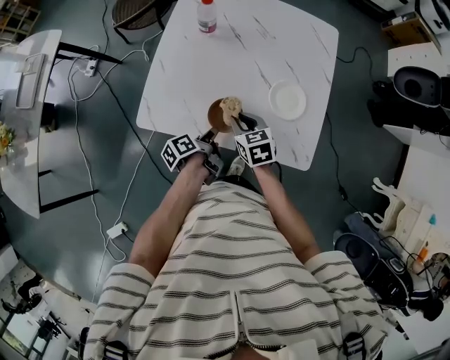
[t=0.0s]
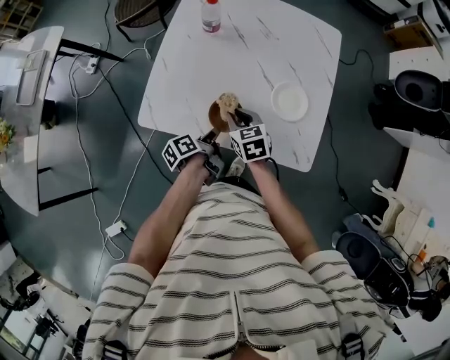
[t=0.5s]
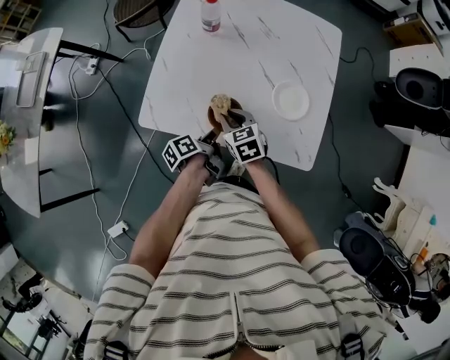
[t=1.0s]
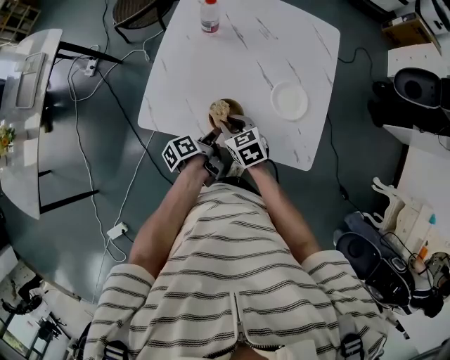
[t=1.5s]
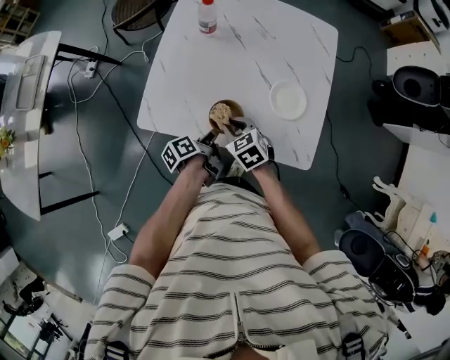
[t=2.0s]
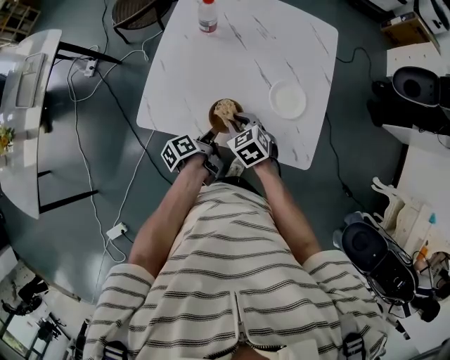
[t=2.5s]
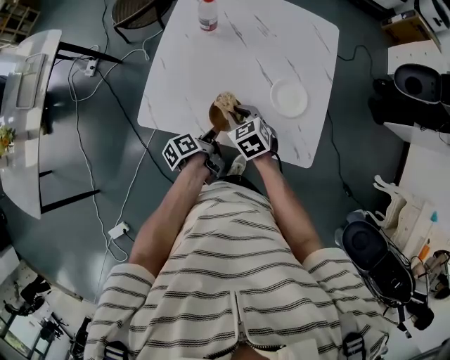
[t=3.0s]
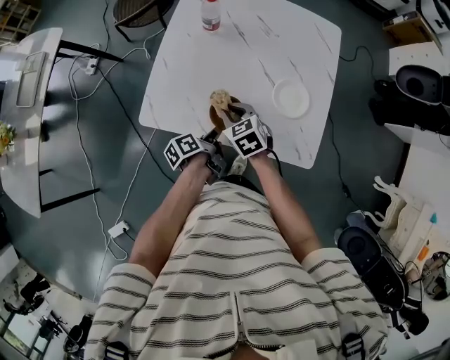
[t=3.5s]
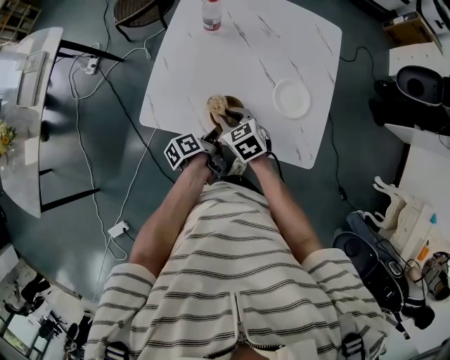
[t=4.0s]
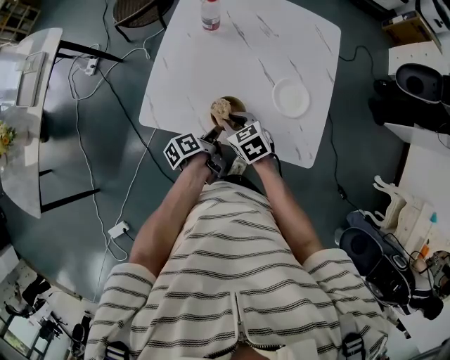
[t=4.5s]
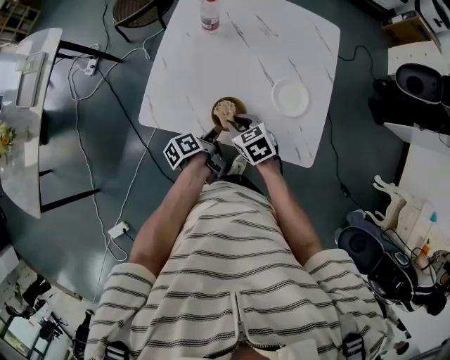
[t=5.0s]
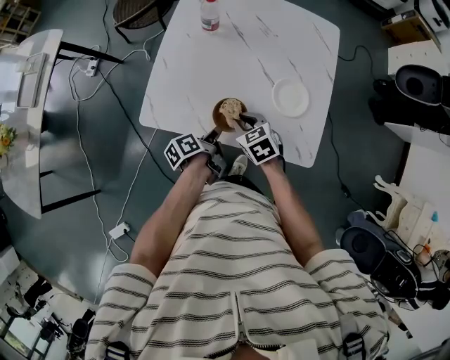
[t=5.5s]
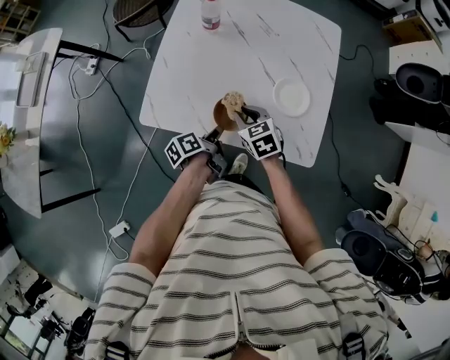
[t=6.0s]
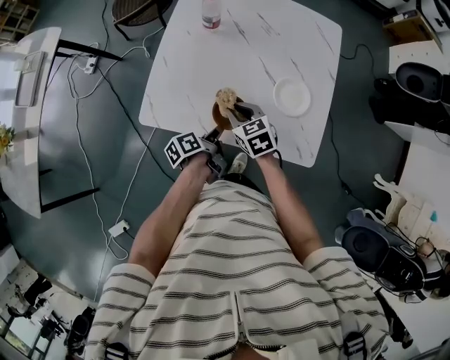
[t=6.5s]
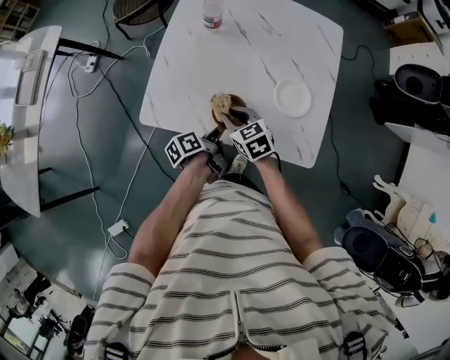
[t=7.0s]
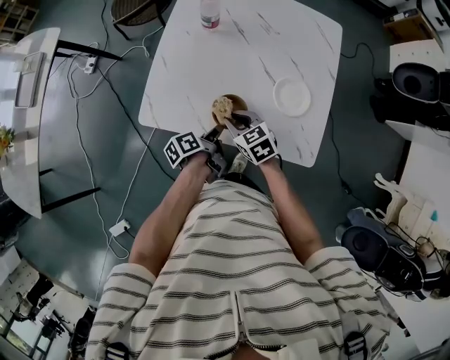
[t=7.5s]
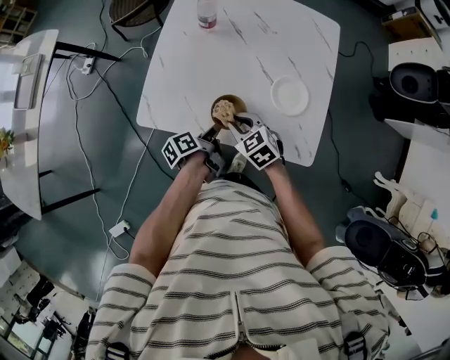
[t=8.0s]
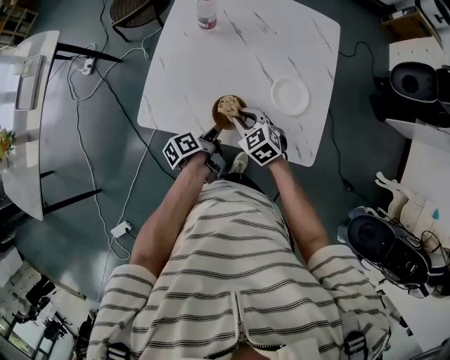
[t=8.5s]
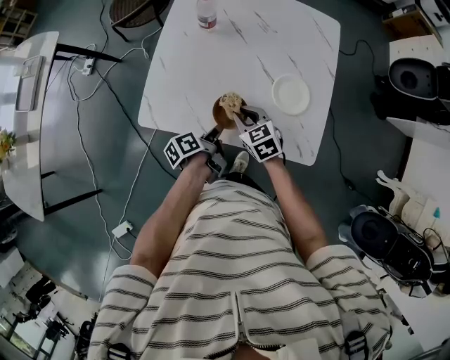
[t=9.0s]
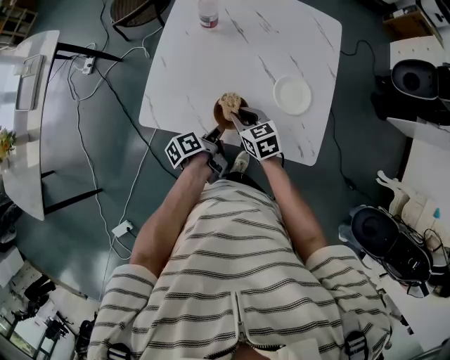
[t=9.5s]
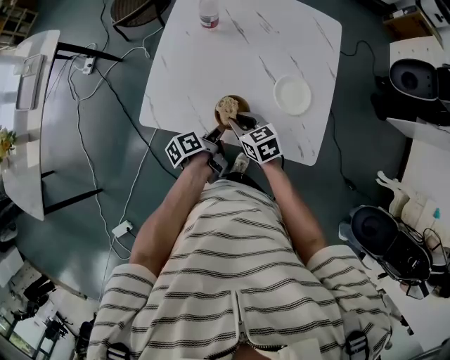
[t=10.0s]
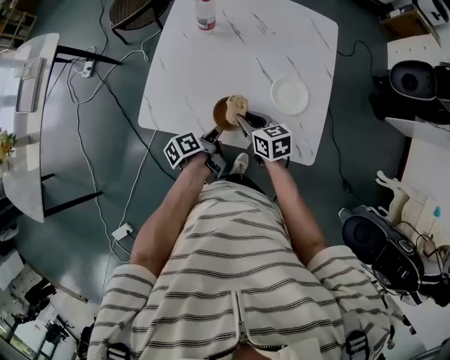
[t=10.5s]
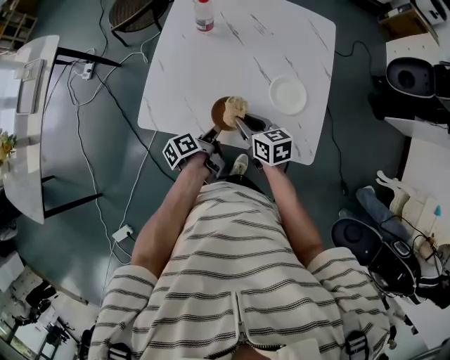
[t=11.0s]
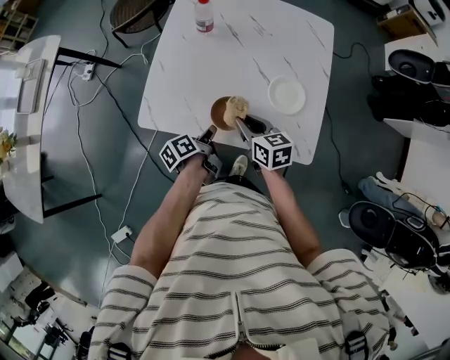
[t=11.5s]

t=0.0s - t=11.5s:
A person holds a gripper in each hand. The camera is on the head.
t=0.0s - t=2.0s: The grippers move only a little.
t=2.0s - t=4.0s: The grippers stay close to where they were, moving slightly.
t=4.0s - t=6.0s: The right gripper travels to the right by roughly 5 cm.
t=6.0s - t=9.5s: The grippers stay close to where they were, moving slightly.
t=9.5s - t=11.5s: The right gripper goes about 5 cm upward.

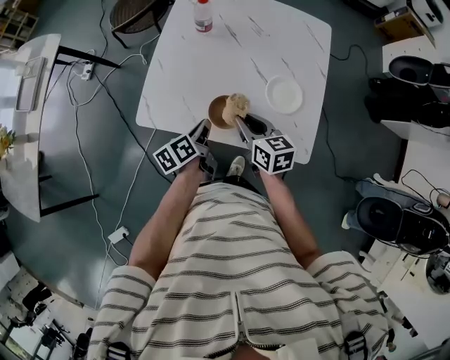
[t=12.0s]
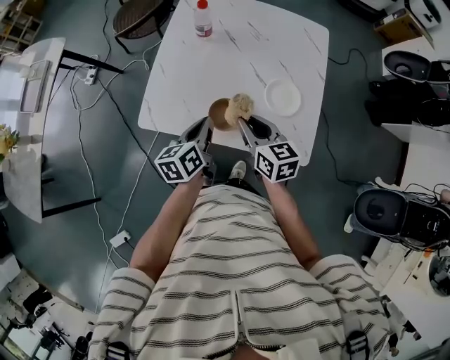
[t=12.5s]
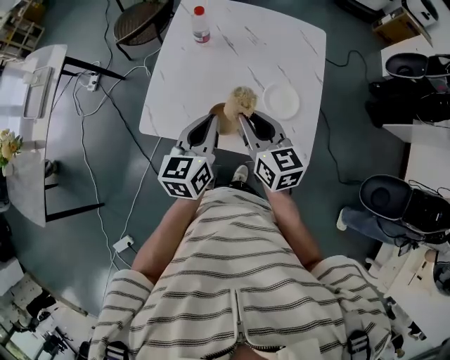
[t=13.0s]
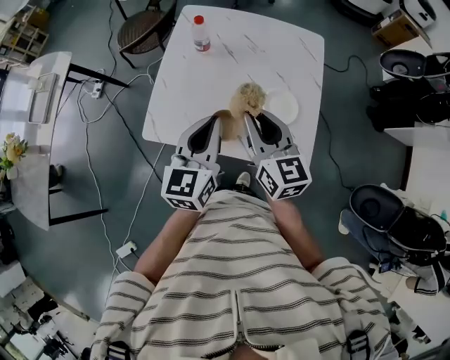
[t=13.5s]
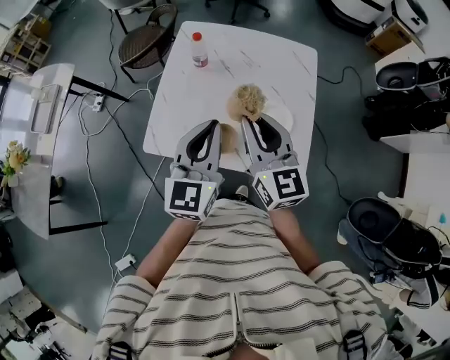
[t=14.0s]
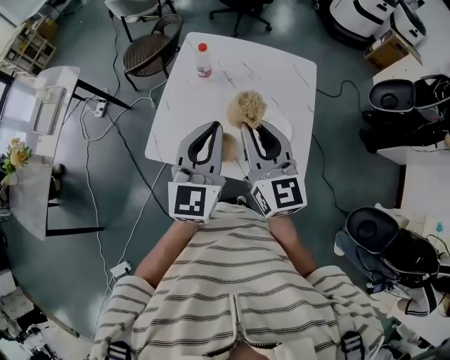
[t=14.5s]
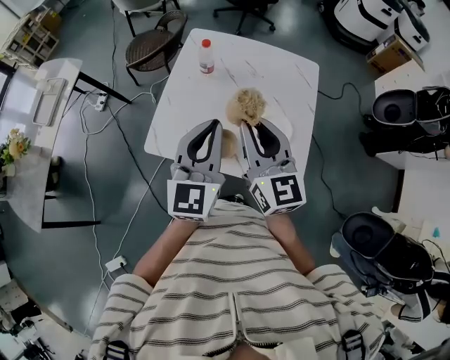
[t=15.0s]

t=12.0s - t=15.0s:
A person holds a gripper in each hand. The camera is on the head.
t=12.0s - t=13.5s: The two grippers go approximately 20 cm upward. The right gripper swivels approximately 30 degrees. The left gripper twists some 50 degrees clockwise, seen from behind.
t=13.5s - t=15.0s: The two grippers go about 10 cm upward.

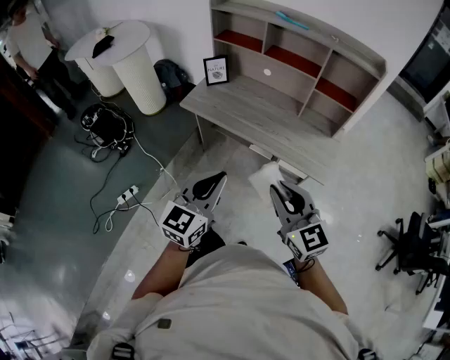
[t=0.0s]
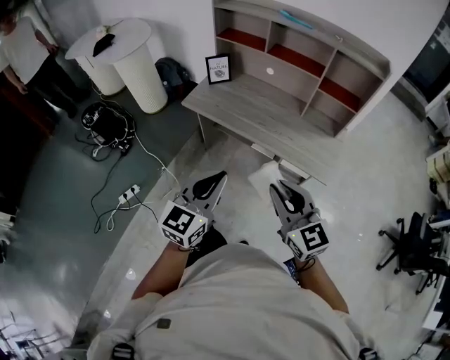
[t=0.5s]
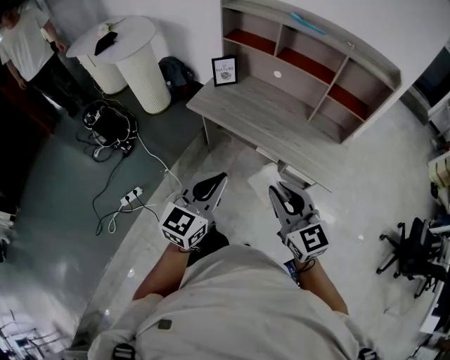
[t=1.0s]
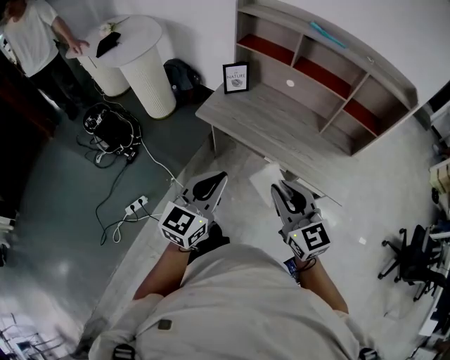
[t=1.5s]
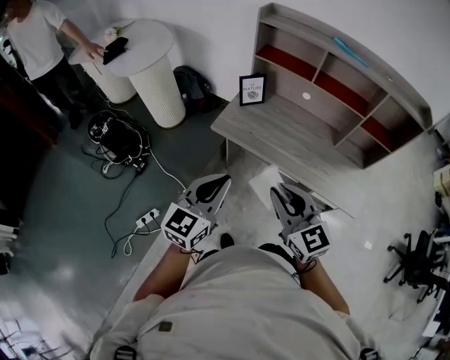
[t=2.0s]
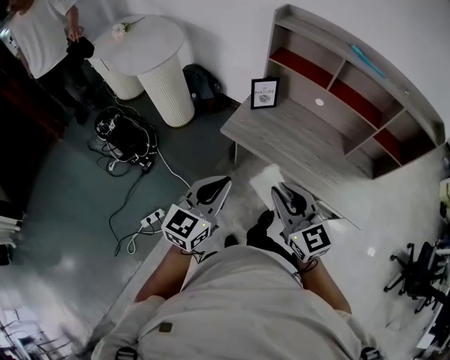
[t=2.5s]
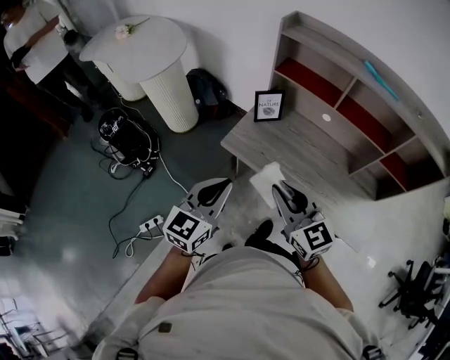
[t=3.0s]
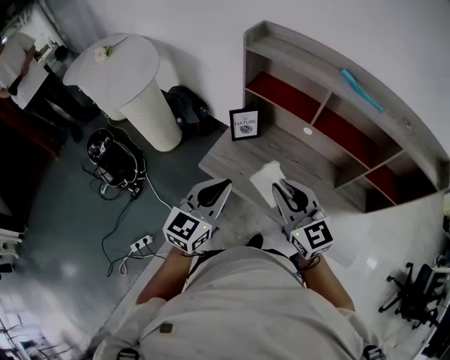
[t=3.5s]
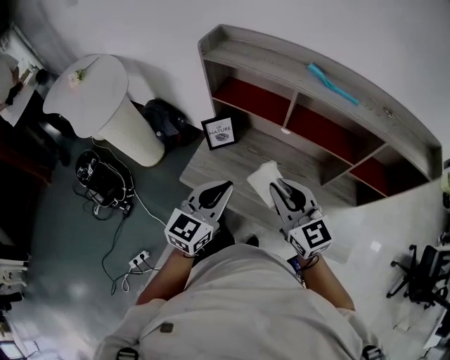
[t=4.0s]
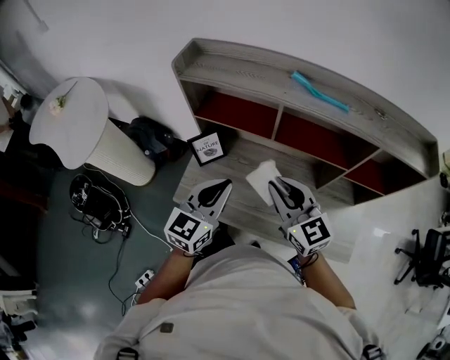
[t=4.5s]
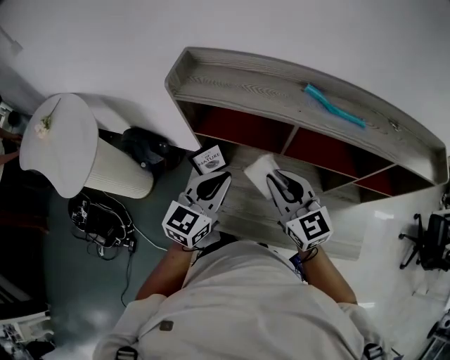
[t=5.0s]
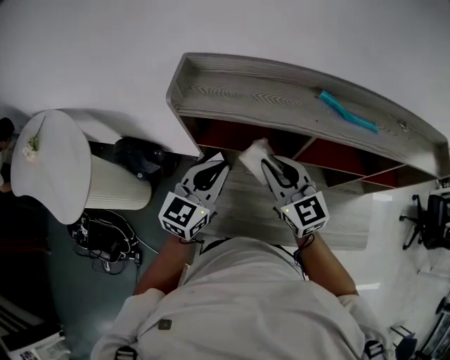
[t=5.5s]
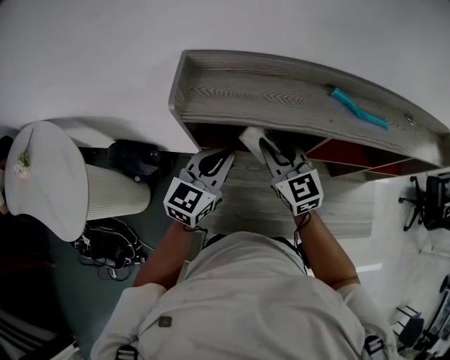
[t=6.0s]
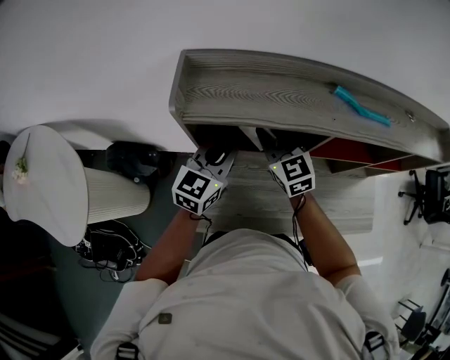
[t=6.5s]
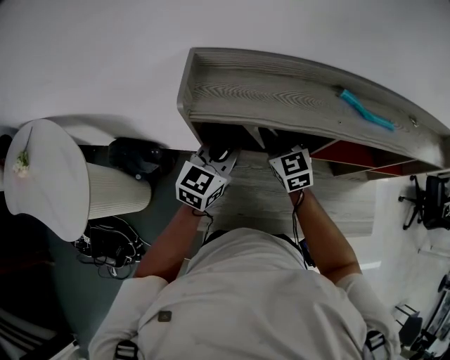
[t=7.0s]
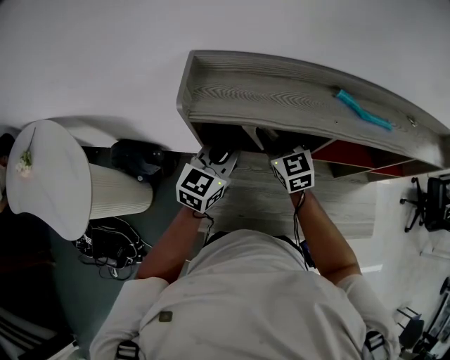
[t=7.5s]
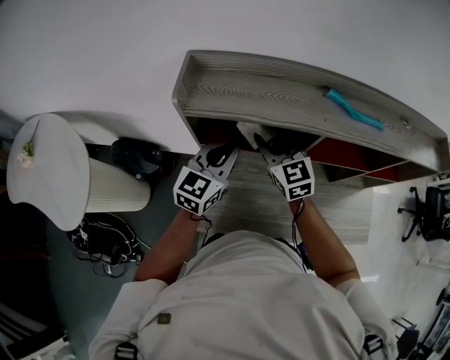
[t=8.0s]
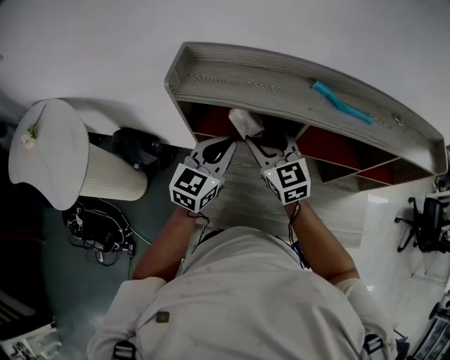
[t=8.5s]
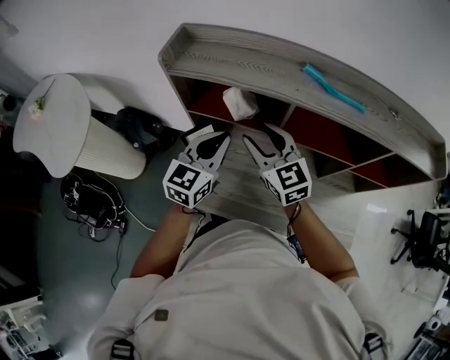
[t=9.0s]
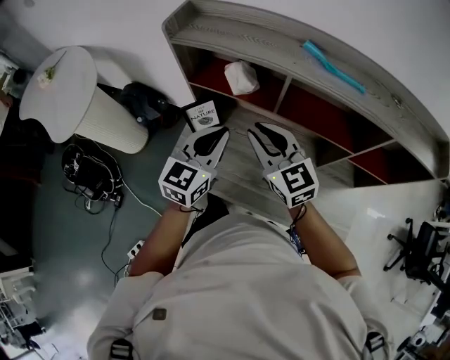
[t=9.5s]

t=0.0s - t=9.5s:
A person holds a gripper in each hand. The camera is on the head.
t=0.0s - t=2.0s: Both grippers move to the left and forward, approximately 30 cm.
t=2.0s - t=4.0s: The two grippers go some 35 cm forward and to the right.
t=4.0s - t=5.5s: The two grippers go roughly 25 cm forward.
t=5.5s - t=7.5s: The left gripper heads forward, covering some 10 cm. Meanwhile the right gripper heads forward and downward, covering approximately 15 cm, and opens up.
t=7.5s - t=9.5s: The left gripper travels backward and to the right by about 20 cm, and turns by approximately 20 degrees, while the right gripper is displaced backward by approximately 20 cm, turns by some 30 degrees, and closes its fingers.

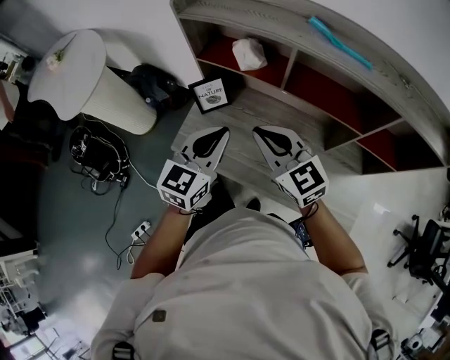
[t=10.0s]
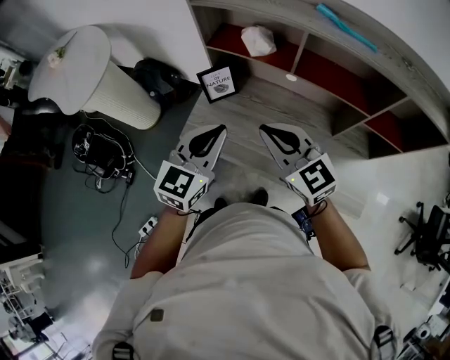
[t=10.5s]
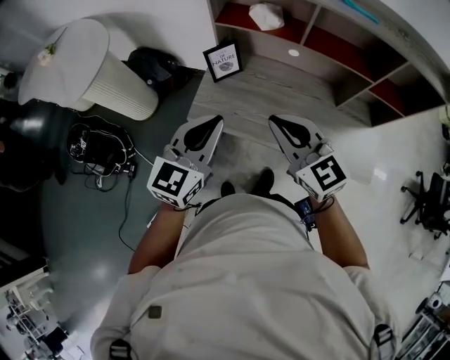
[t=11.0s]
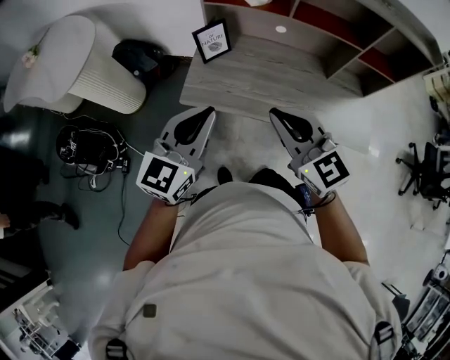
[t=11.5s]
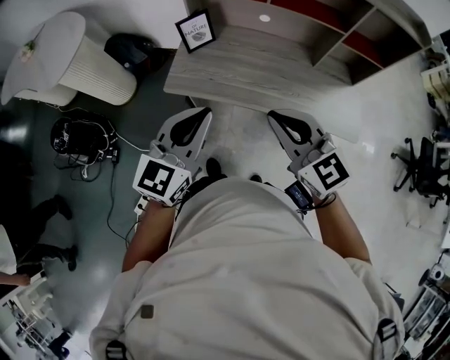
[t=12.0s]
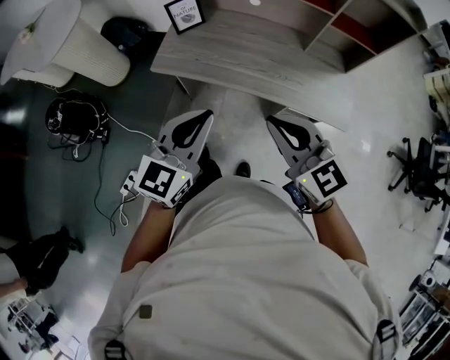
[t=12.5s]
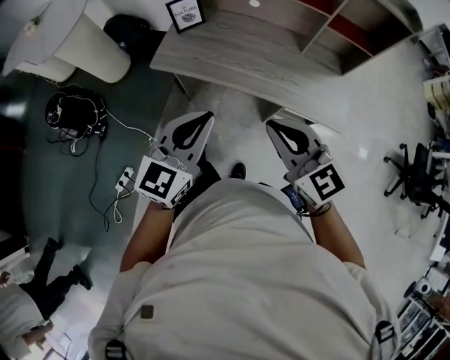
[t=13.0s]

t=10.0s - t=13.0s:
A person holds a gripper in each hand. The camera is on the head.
t=10.0s - t=11.5s: Both grippers move backward and to the left, about 25 cm.
t=11.5s - t=13.0s: The two grippers go some 25 cm backward and to the right.
